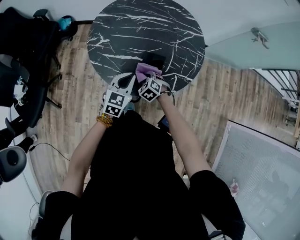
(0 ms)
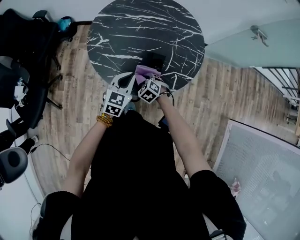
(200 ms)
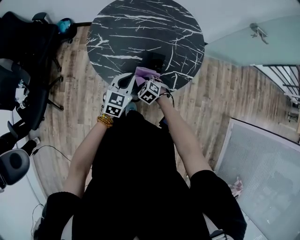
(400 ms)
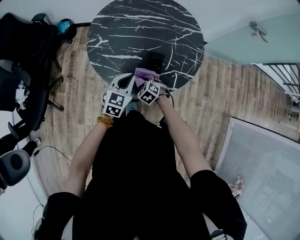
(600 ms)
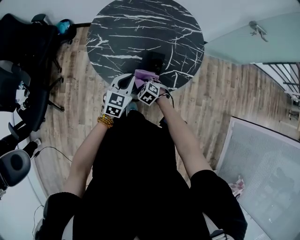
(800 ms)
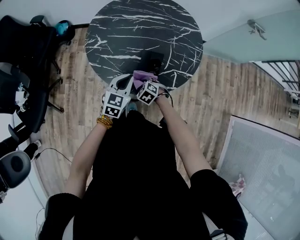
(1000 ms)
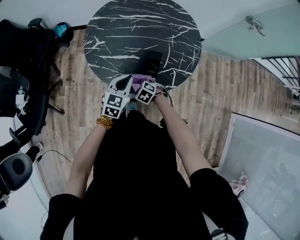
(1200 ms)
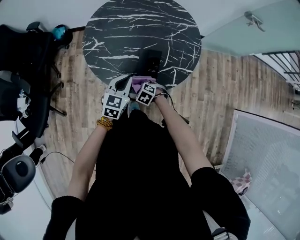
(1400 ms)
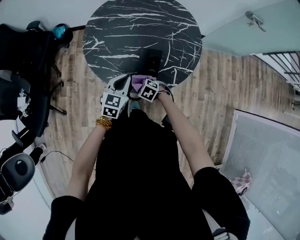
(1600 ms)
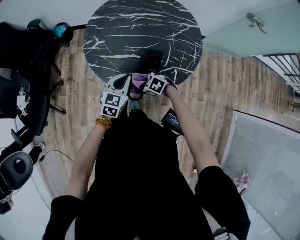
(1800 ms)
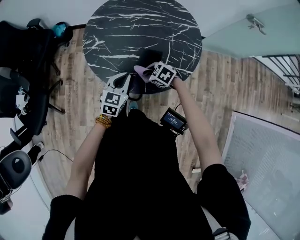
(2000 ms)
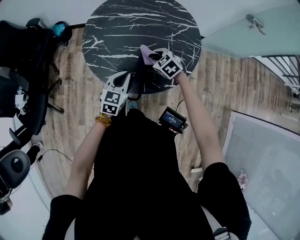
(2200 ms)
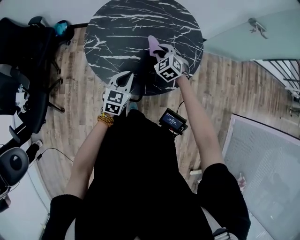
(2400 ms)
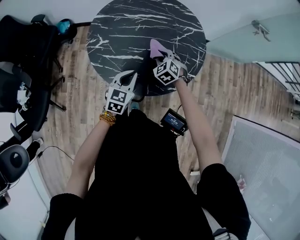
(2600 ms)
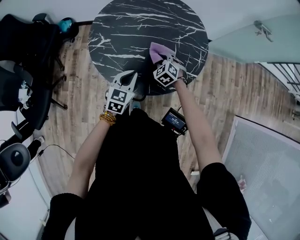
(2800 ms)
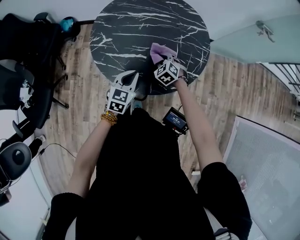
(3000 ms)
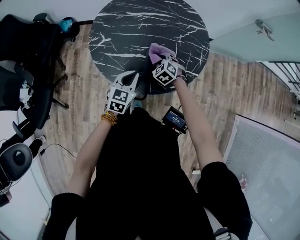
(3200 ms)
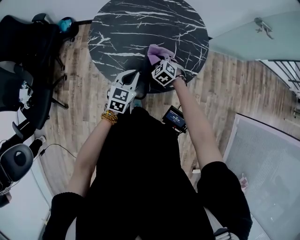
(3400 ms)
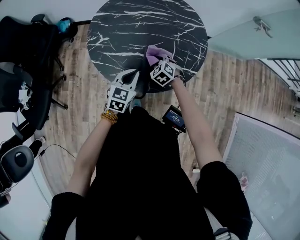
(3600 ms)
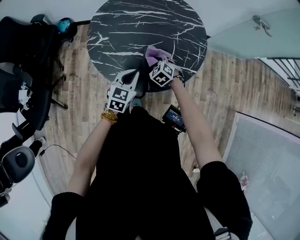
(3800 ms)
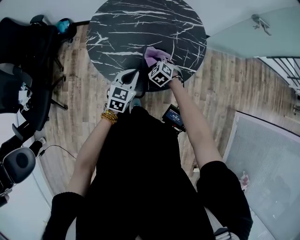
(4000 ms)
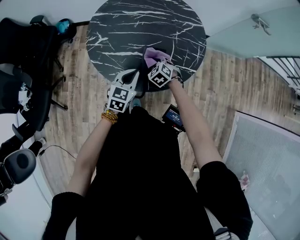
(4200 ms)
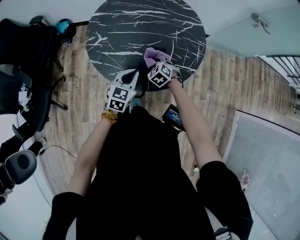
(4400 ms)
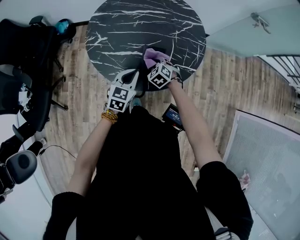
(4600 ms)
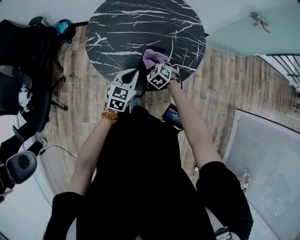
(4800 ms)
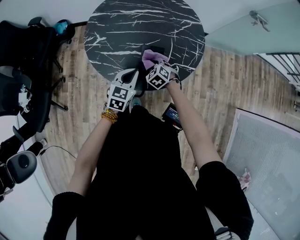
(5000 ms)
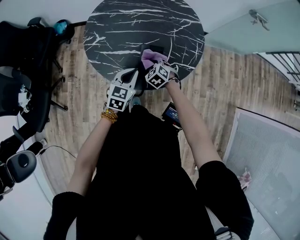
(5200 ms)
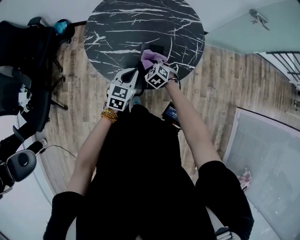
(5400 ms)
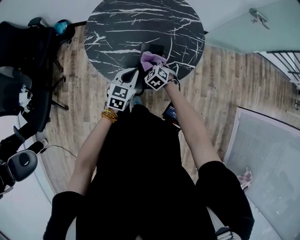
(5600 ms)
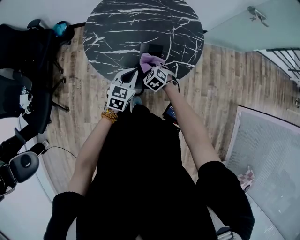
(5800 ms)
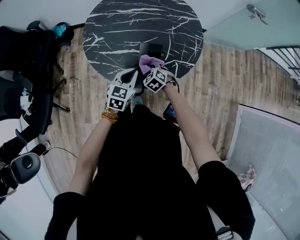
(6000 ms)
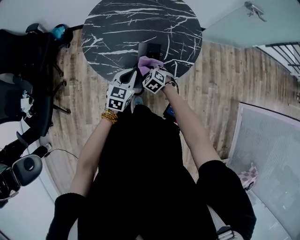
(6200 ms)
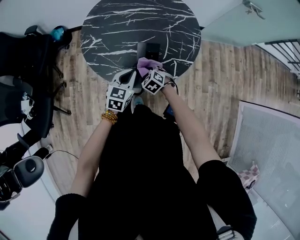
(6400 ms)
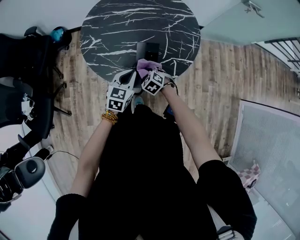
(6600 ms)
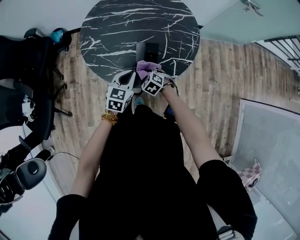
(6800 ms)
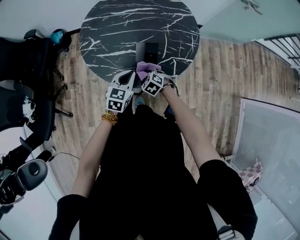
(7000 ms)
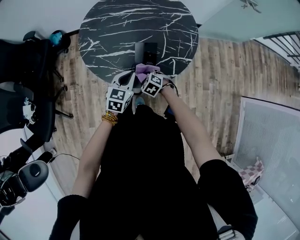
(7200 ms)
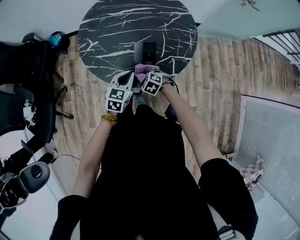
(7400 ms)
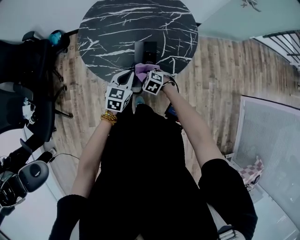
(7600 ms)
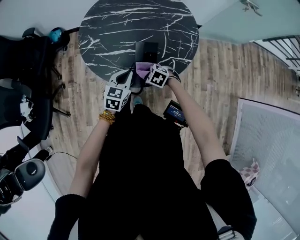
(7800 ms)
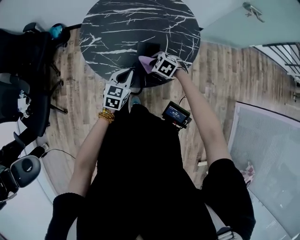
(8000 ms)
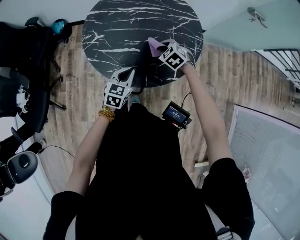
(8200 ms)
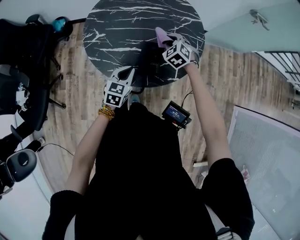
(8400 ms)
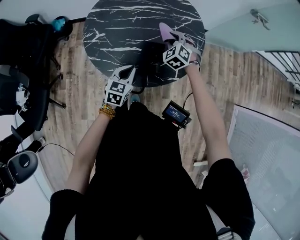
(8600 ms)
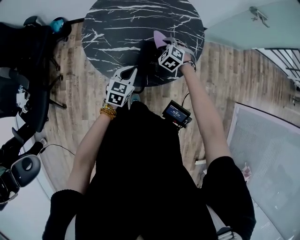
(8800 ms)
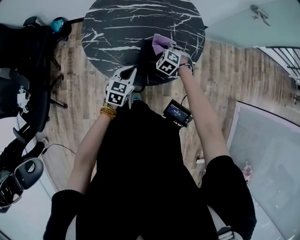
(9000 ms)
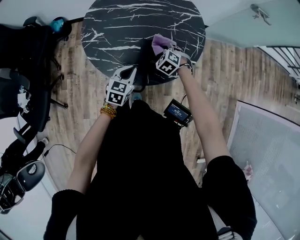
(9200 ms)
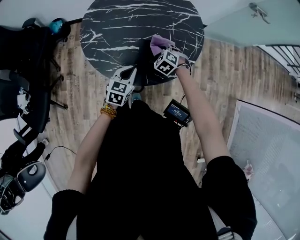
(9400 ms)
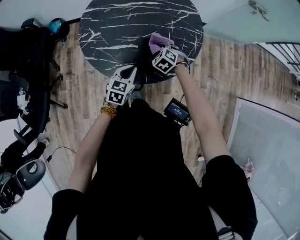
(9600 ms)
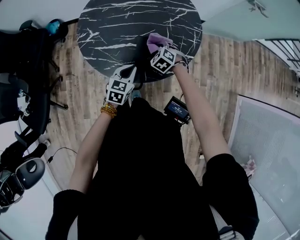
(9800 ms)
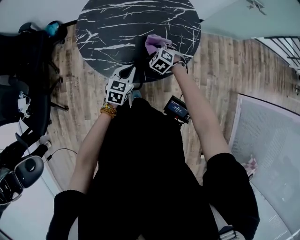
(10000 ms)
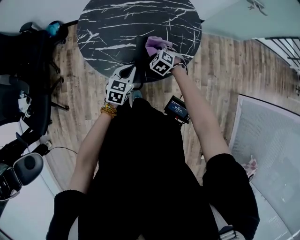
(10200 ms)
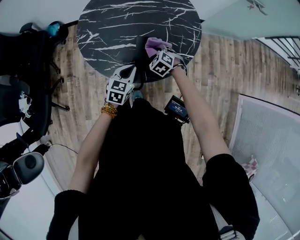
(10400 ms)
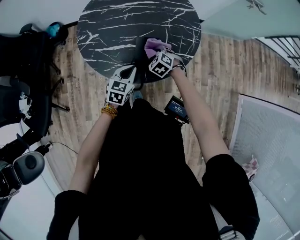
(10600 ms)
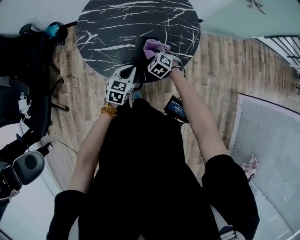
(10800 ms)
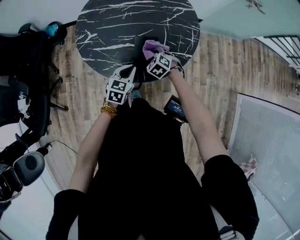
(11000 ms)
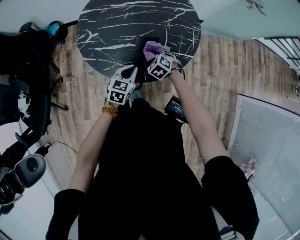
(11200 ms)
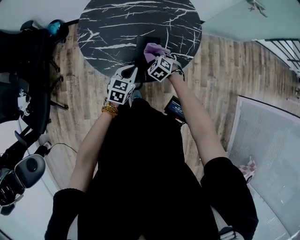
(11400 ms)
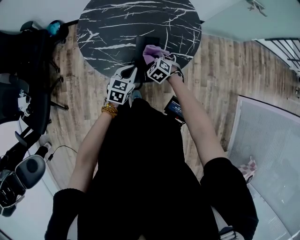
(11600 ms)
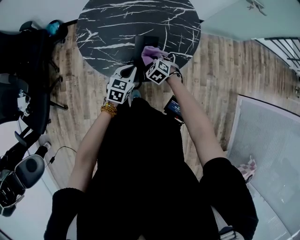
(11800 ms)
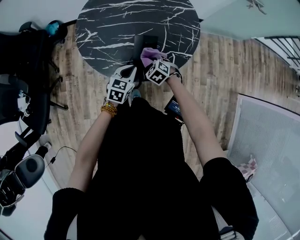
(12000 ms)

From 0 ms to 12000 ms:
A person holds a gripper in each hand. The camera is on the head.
From 0 ms to 1600 ms: The right gripper travels backward by approximately 10 cm, and swivels approximately 20 degrees.
From 1600 ms to 3000 ms: The right gripper shifts by roughly 20 cm, and changes its angle by approximately 30 degrees.
From 3000 ms to 4400 ms: The grippers stay close to where they were, moving slightly.
From 4400 ms to 6000 ms: The right gripper shifts some 5 cm backward.
From 6000 ms to 7600 ms: The right gripper shifts some 5 cm backward.
From 9000 ms to 10400 ms: The grippers move only a little.
From 10400 ms to 12000 ms: The right gripper travels backward by about 5 cm.

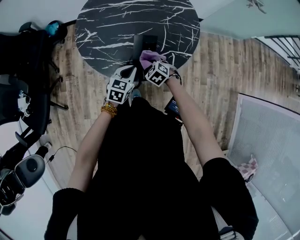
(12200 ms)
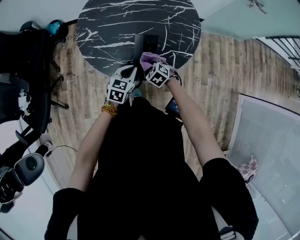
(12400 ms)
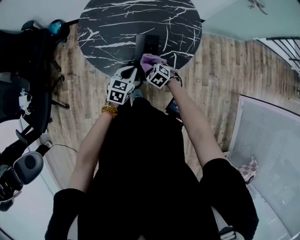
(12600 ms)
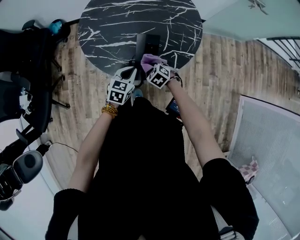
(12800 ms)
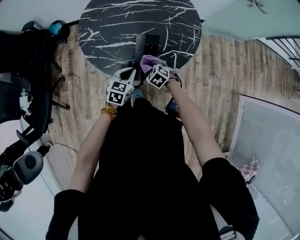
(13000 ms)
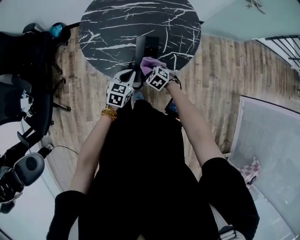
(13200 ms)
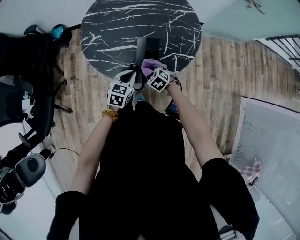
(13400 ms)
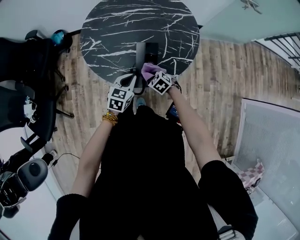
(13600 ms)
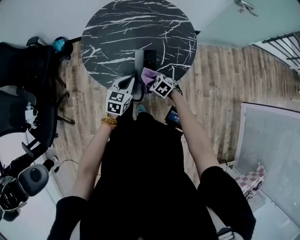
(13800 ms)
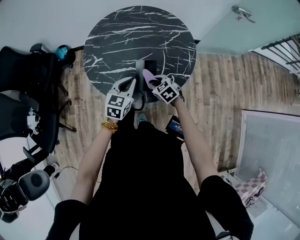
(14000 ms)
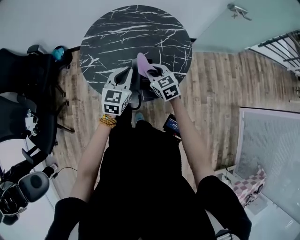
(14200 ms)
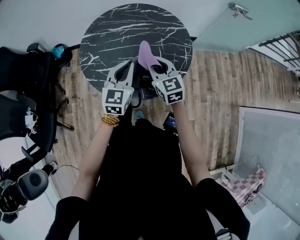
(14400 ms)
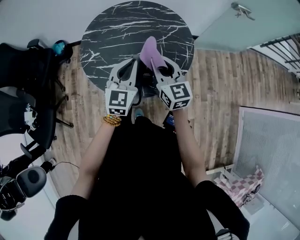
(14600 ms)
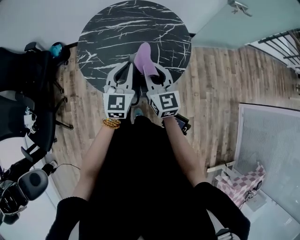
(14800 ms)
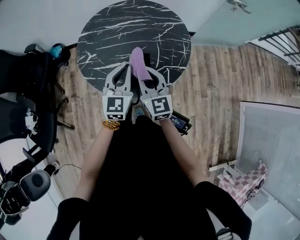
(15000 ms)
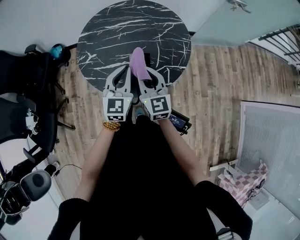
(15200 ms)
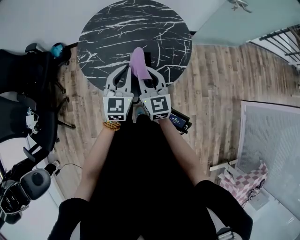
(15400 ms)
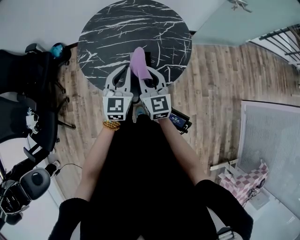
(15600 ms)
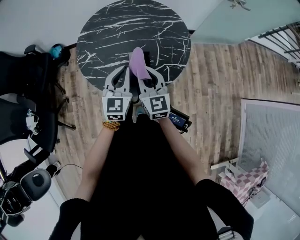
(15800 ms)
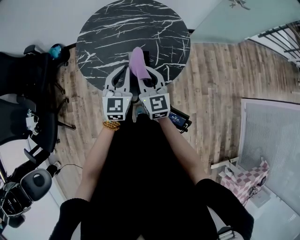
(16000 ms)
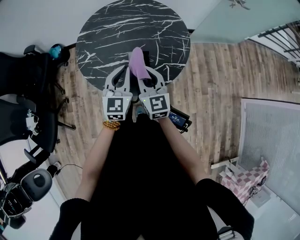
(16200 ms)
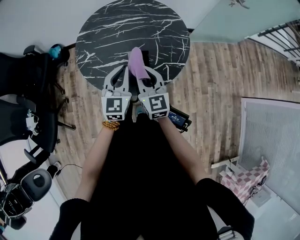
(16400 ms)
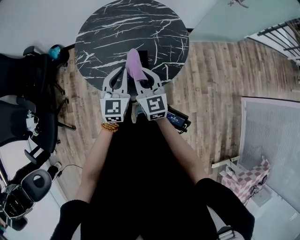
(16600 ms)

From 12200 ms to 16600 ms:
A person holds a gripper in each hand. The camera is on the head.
From 12200 ms to 13600 ms: The grippers stay close to where they were, moving slightly.
From 13600 ms to 15200 ms: The left gripper goes roughly 20 cm upward, and turns by approximately 30 degrees. Meanwhile the right gripper is displaced upward by approximately 30 cm, and angles its fingers upward, by approximately 50 degrees.
From 15200 ms to 16600 ms: The grippers make only small movements.

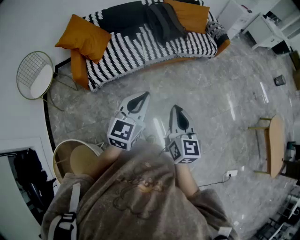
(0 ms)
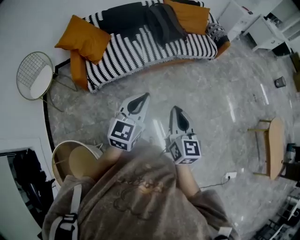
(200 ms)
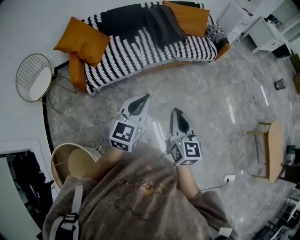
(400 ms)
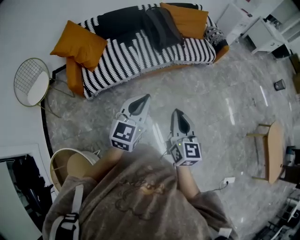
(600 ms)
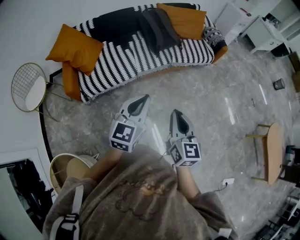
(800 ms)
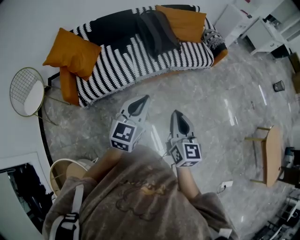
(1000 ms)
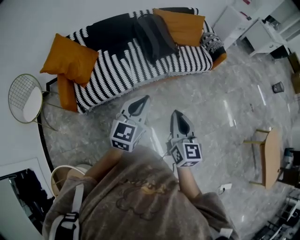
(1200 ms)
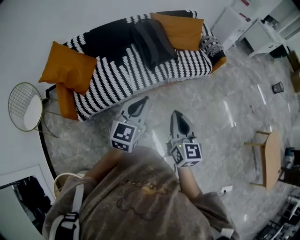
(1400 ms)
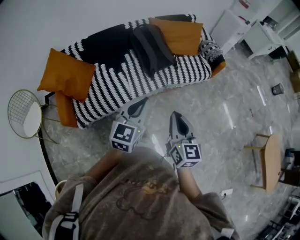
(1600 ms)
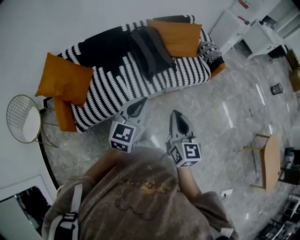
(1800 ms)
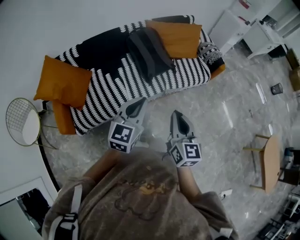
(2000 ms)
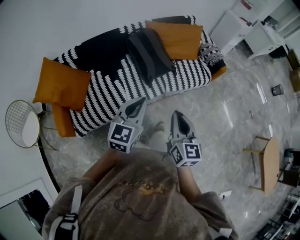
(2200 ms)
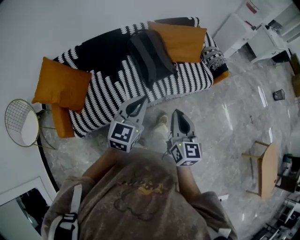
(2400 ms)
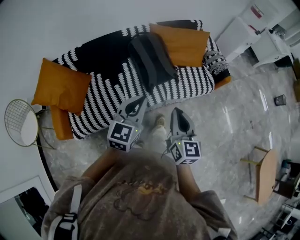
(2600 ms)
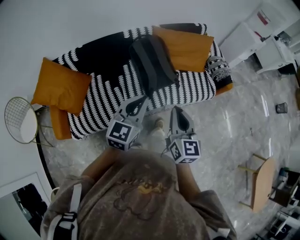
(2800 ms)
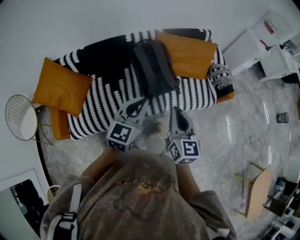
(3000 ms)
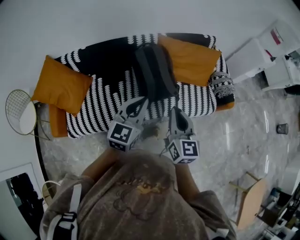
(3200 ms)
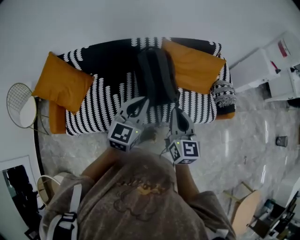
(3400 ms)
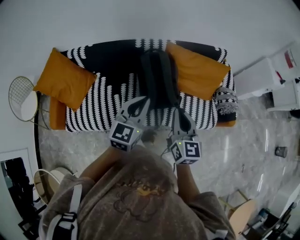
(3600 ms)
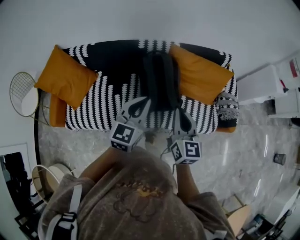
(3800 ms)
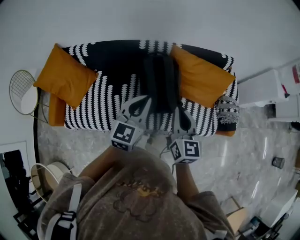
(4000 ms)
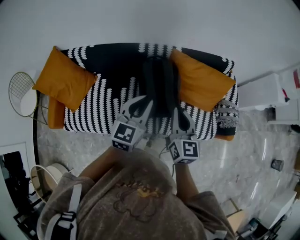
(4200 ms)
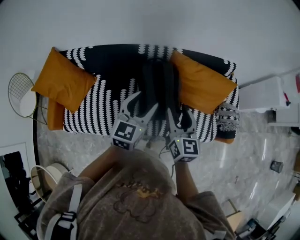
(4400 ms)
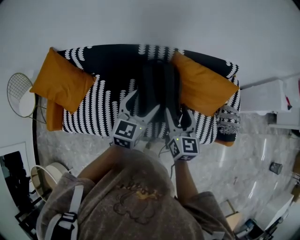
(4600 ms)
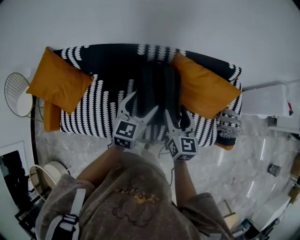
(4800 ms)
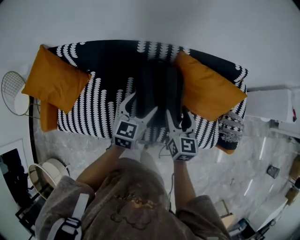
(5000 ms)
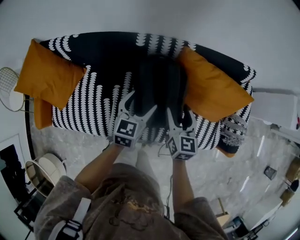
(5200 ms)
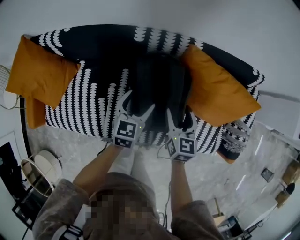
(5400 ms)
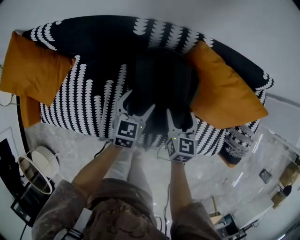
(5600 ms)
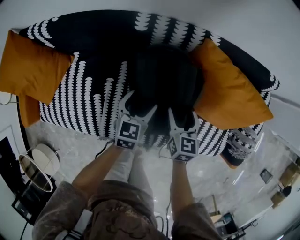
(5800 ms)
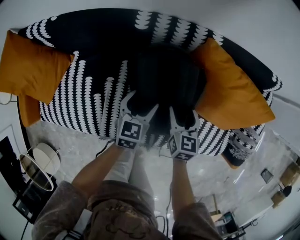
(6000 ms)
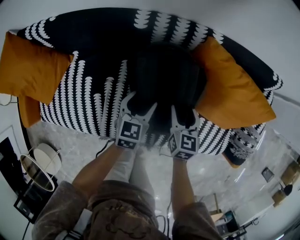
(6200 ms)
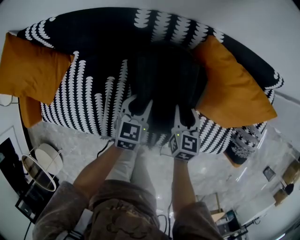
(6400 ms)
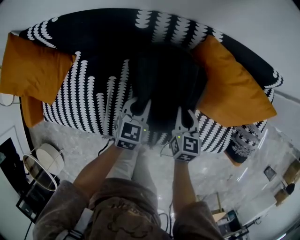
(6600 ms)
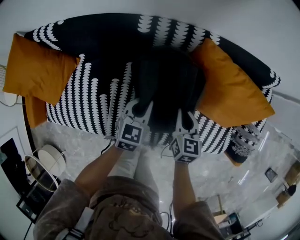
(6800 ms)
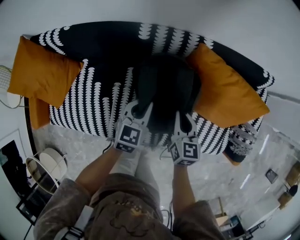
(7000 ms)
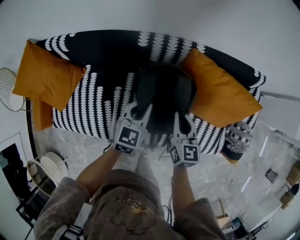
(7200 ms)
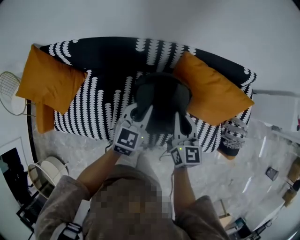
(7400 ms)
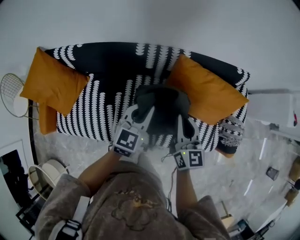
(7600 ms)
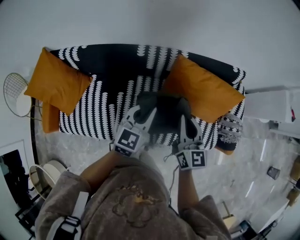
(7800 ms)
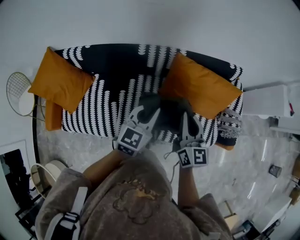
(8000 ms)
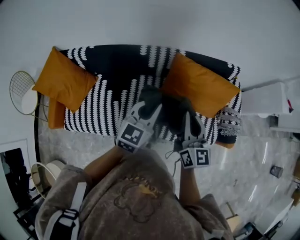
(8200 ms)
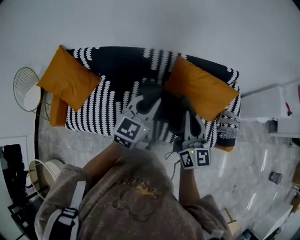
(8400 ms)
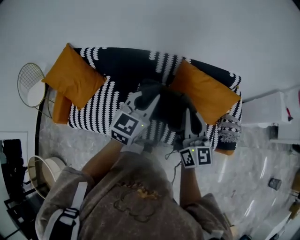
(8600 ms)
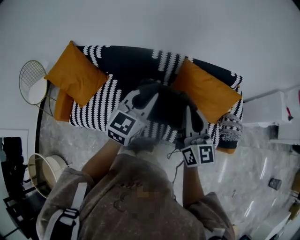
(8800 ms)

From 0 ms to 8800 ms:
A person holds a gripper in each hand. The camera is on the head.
From 0 ms to 1400 ms: The grippers both shift forward by about 30 cm.
From 1400 ms to 3000 ms: Both grippers travel together forward, some 35 cm.
From 3000 ms to 4400 ms: The two grippers go roughly 25 cm forward. The left gripper opens. Meanwhile the right gripper opens its fingers.
From 4400 ms to 5800 ms: Both grippers travel together downward and forward, about 40 cm. The left gripper turns by roughly 20 degrees. Meanwhile the right gripper swivels some 20 degrees.
From 5800 ms to 7400 ms: Both grippers travel together upward, some 20 cm. The left gripper closes, while the right gripper closes its fingers.
From 7400 ms to 8800 ms: Both grippers travel together upward and backward, approximately 30 cm. The right gripper swivels approximately 20 degrees.
